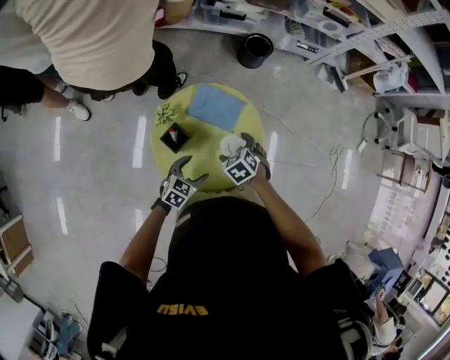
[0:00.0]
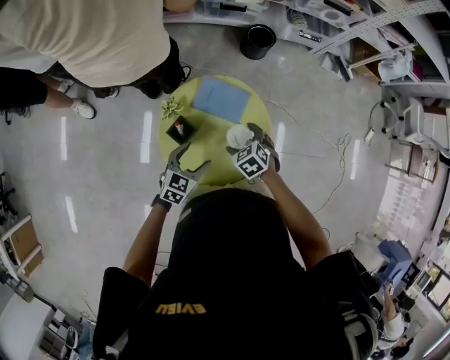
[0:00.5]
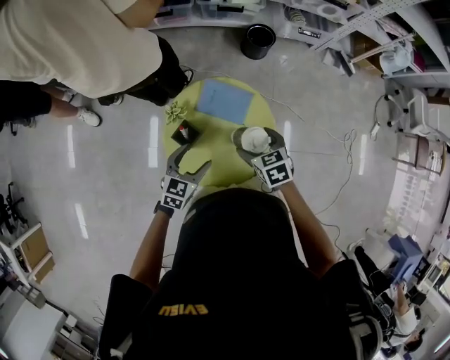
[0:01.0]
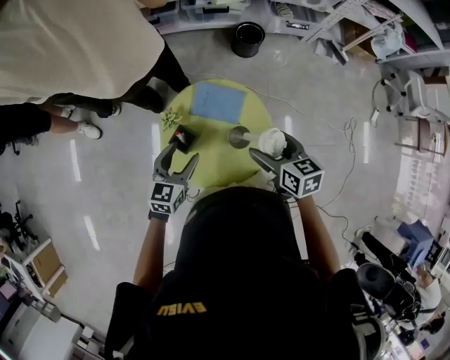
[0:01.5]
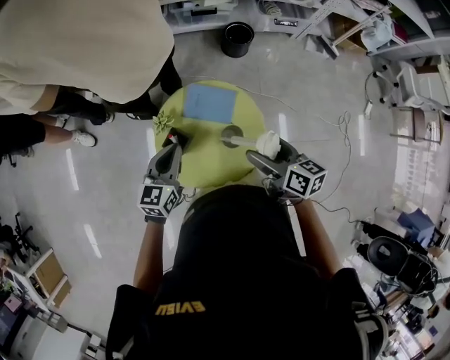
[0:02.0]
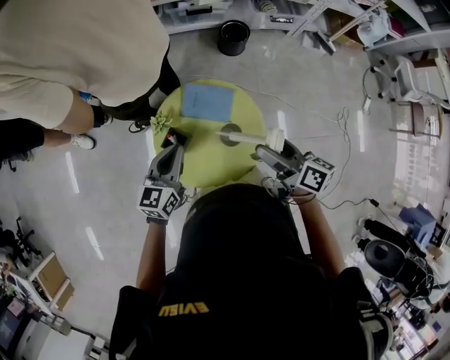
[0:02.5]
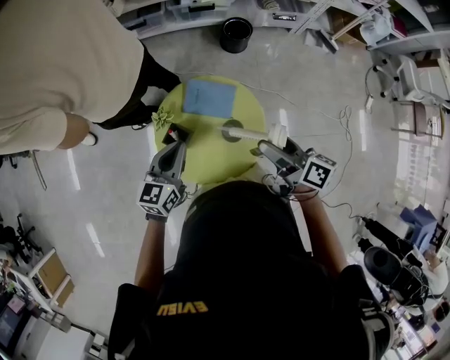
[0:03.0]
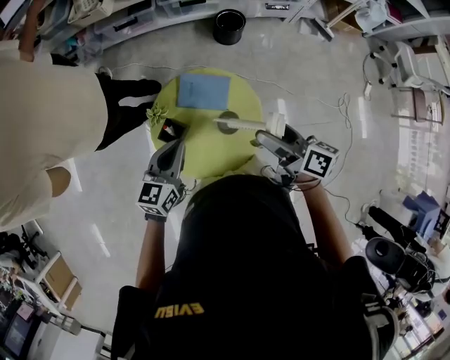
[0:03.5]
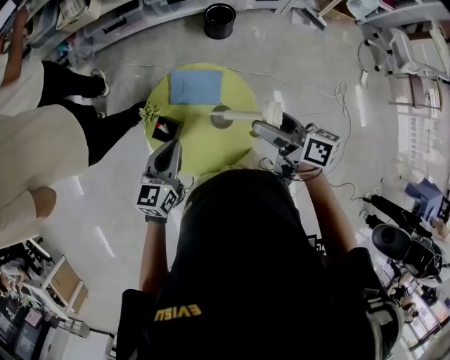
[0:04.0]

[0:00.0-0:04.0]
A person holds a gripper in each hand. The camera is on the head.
0:00.0 to 0:02.0: The right gripper heads upward, covering approximately 20 cm, and tips its fingers upward by approximately 40 degrees. The left gripper travels upward and forward by some 20 cm, swivels approximately 30 degrees, and closes its fingers.
0:02.0 to 0:04.0: There are only small adjustments of the grippers.

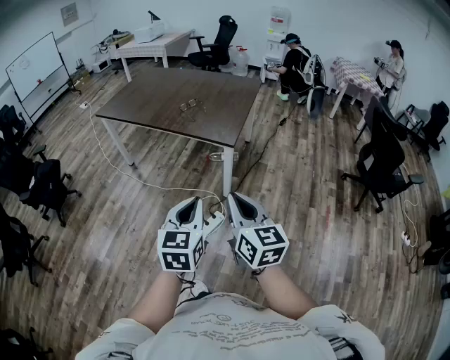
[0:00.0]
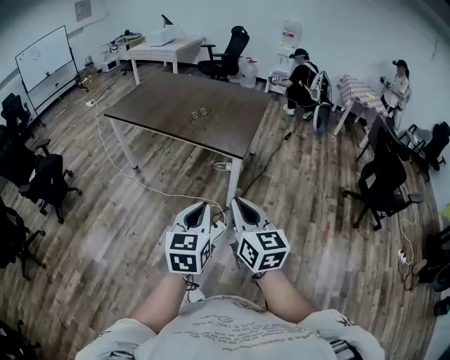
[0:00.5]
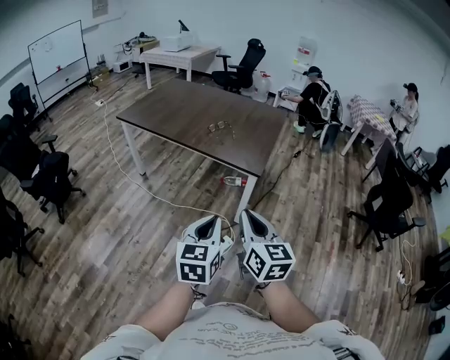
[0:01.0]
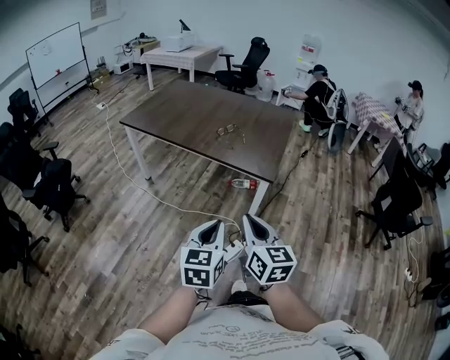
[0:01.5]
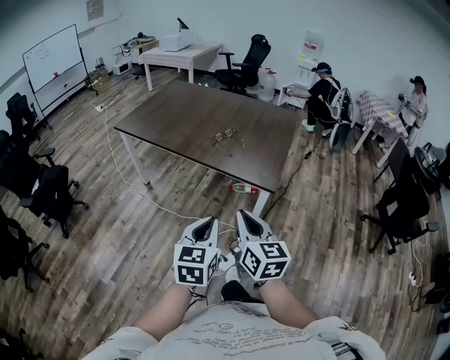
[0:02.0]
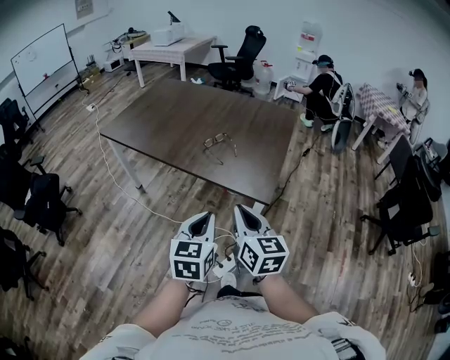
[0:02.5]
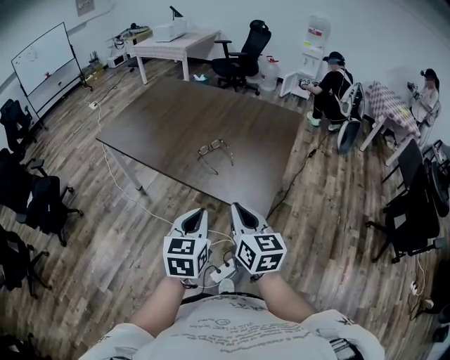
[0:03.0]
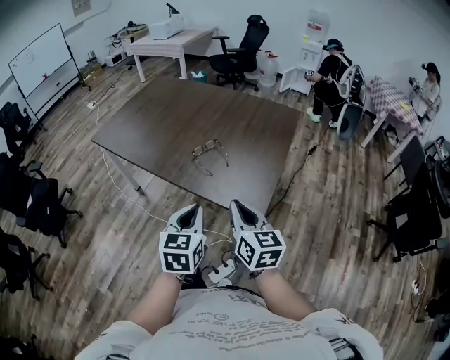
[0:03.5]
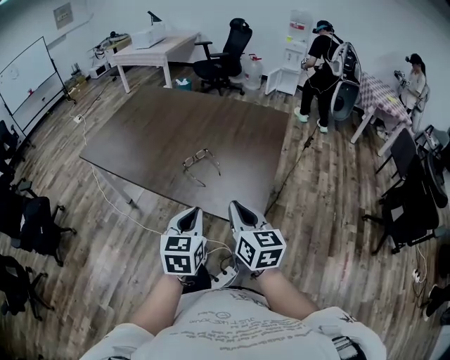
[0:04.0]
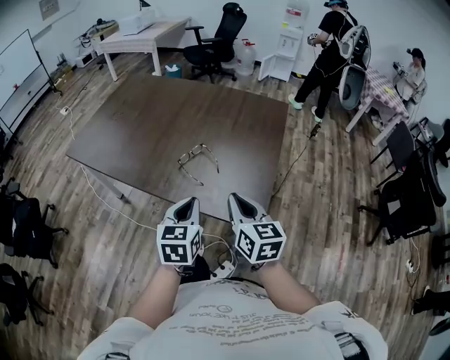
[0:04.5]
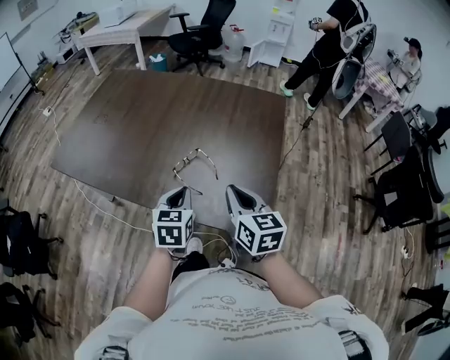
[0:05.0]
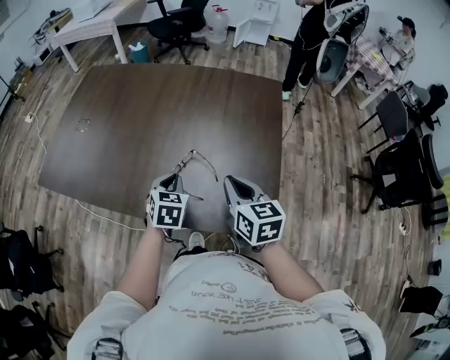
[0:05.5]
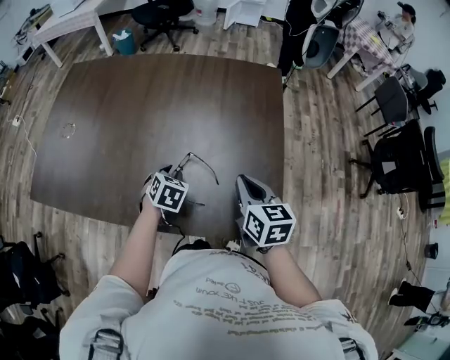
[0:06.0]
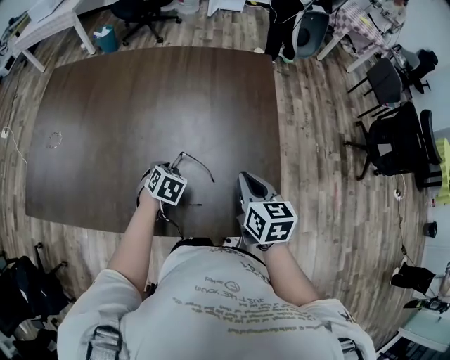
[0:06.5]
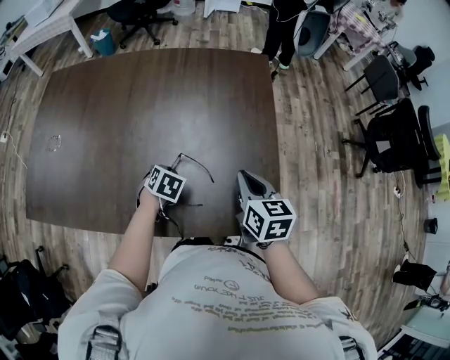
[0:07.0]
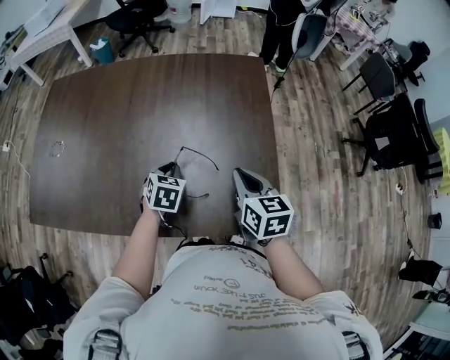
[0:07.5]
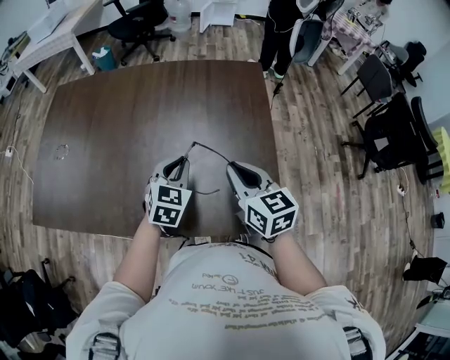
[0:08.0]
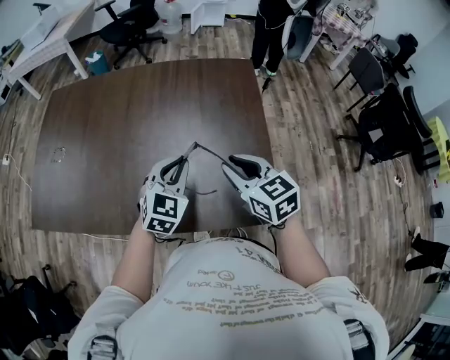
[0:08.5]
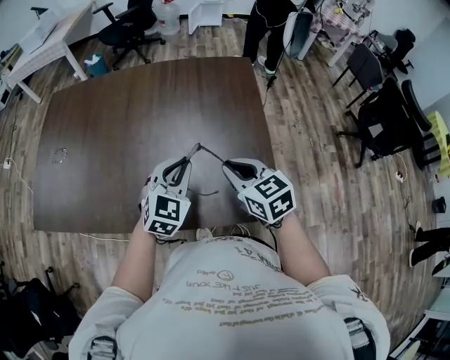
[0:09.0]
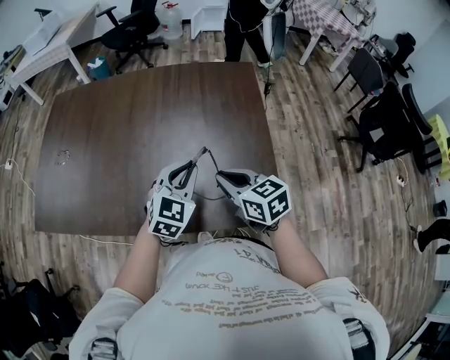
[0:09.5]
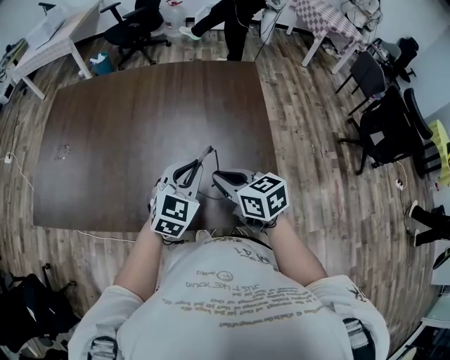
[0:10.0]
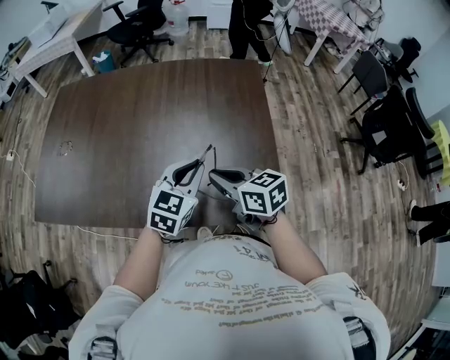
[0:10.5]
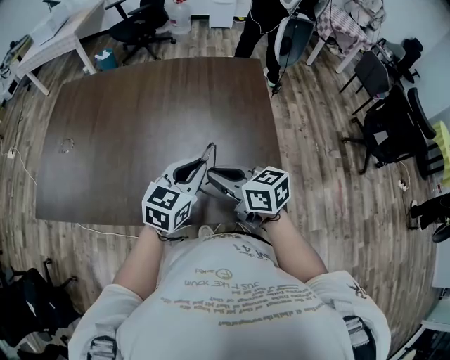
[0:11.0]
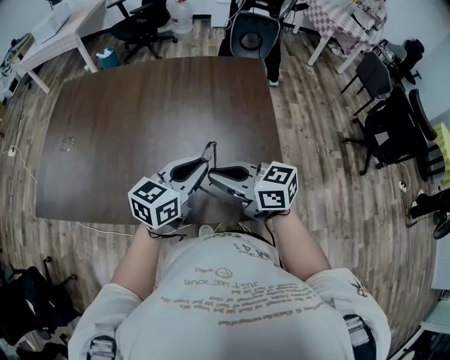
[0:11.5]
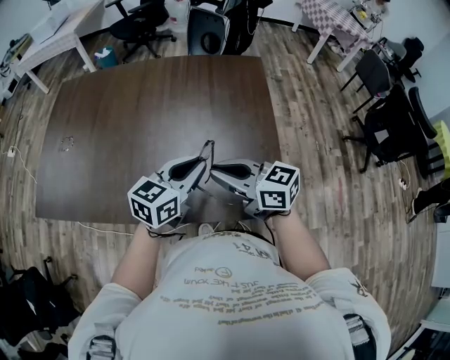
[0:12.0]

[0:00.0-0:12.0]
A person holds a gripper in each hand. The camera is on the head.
0:00.0 to 0:02.0: The two grippers go roughly 25 cm forward and to the left.
0:02.0 to 0:04.0: The left gripper moves forward, approximately 30 cm. The right gripper heads forward and to the right, covering roughly 30 cm.
0:04.0 to 0:06.0: The right gripper moves forward, about 25 cm, and rotates roughly 20 degrees; the left gripper goes about 40 cm forward and downward, tips its fingers downward by about 30 degrees, and opens its fingers.
0:06.0 to 0:08.0: The left gripper moves upward and to the right, approximately 10 cm, and swivels some 30 degrees.
0:08.0 to 0:10.0: The right gripper ends up about 5 cm from where it was, while the left gripper travels backward by about 5 cm.
0:10.0 to 0:12.0: The left gripper rotates approximately 30 degrees; the right gripper moves approximately 5 cm, and swivels some 20 degrees.

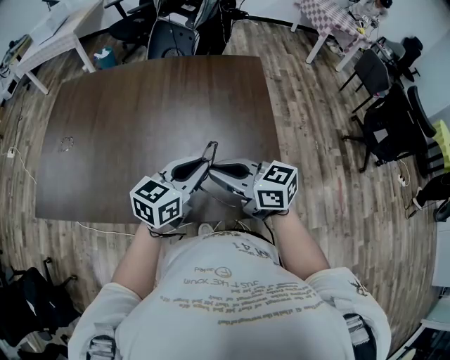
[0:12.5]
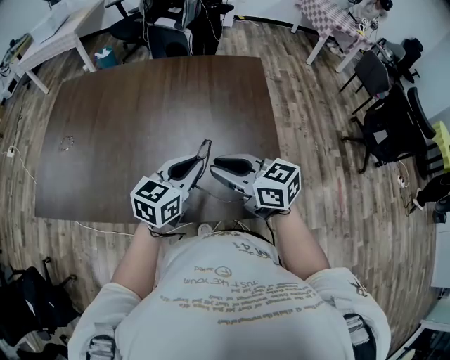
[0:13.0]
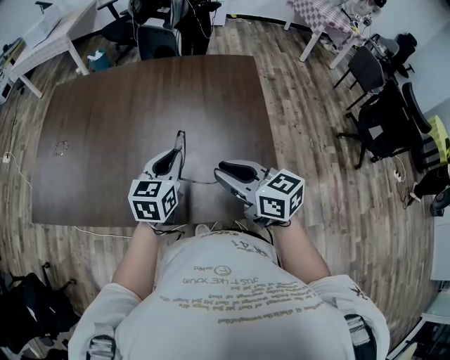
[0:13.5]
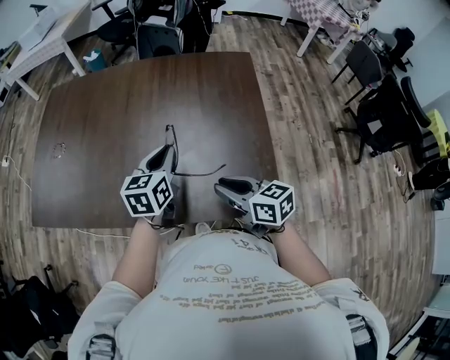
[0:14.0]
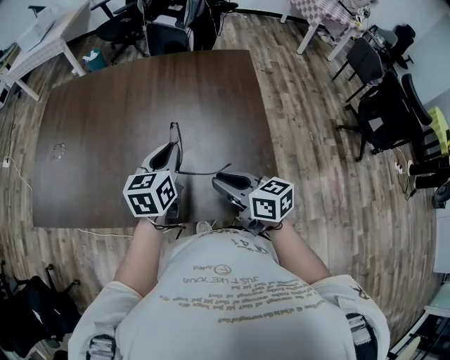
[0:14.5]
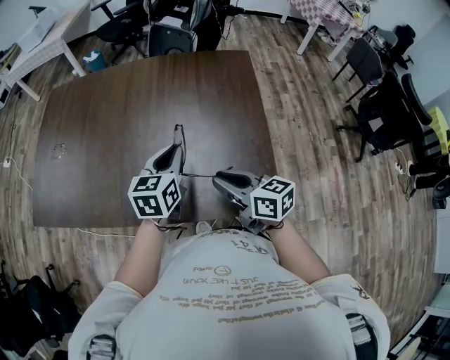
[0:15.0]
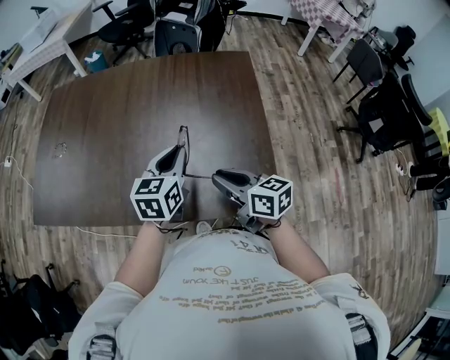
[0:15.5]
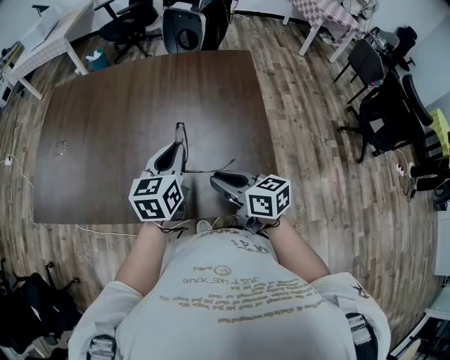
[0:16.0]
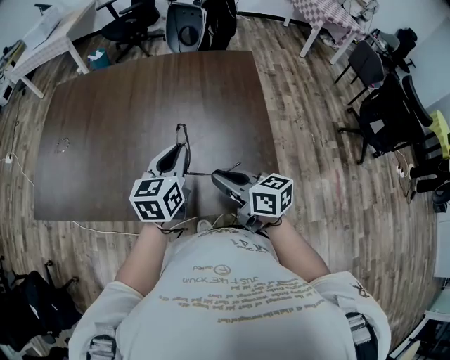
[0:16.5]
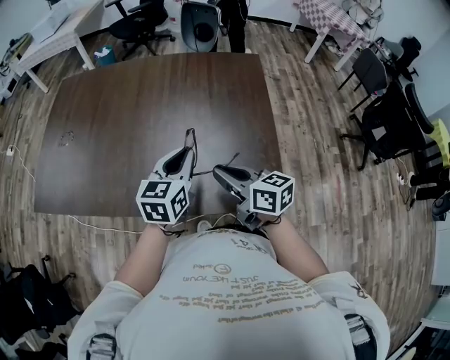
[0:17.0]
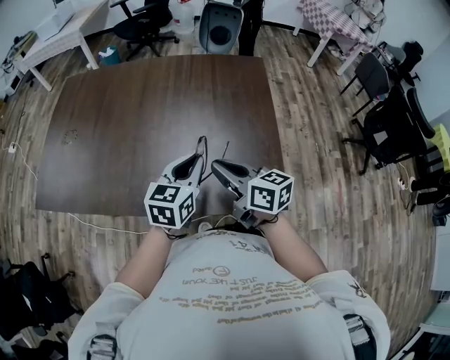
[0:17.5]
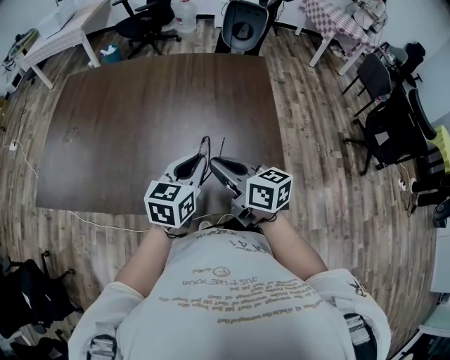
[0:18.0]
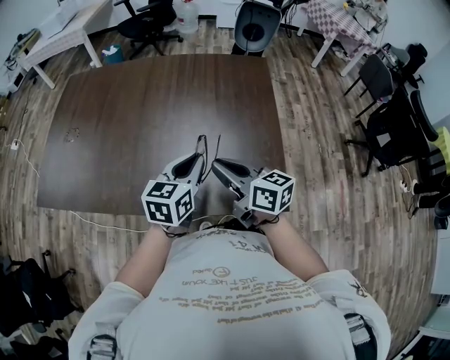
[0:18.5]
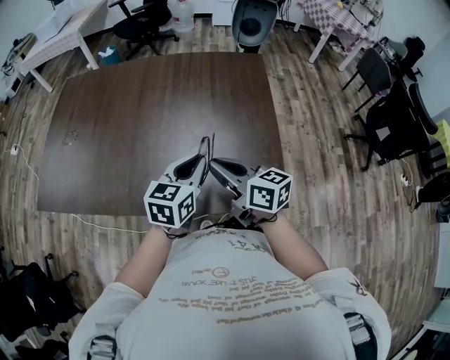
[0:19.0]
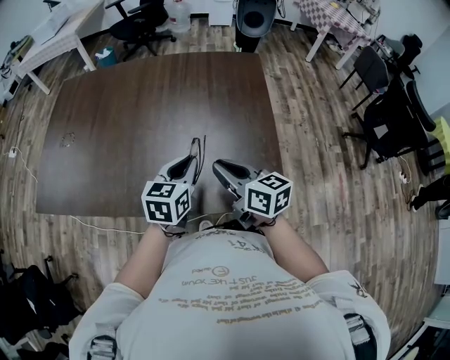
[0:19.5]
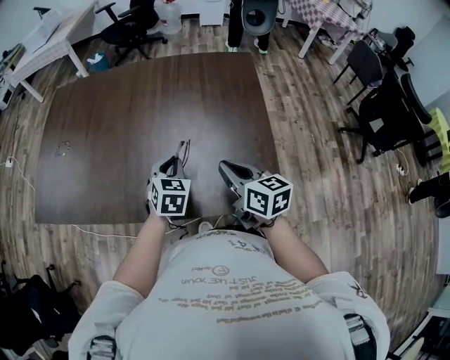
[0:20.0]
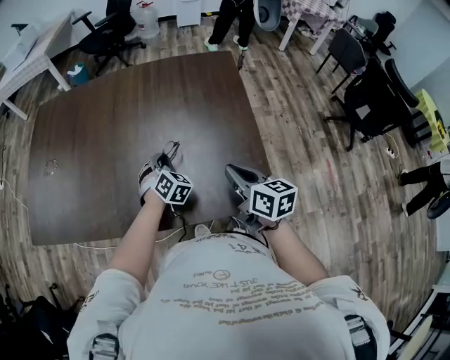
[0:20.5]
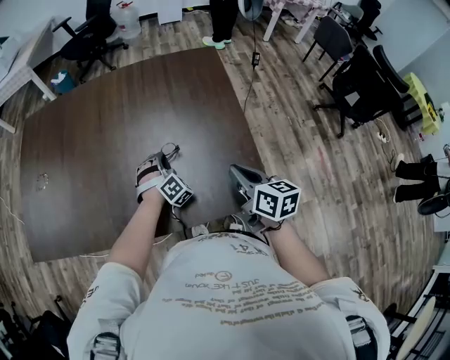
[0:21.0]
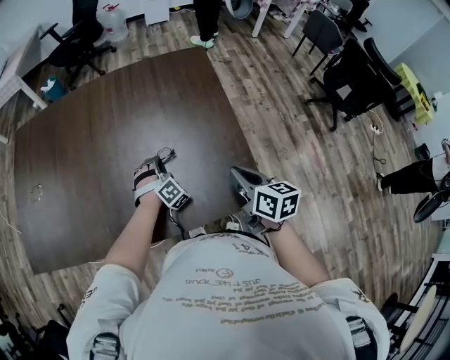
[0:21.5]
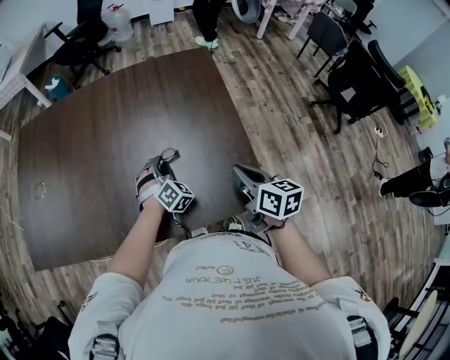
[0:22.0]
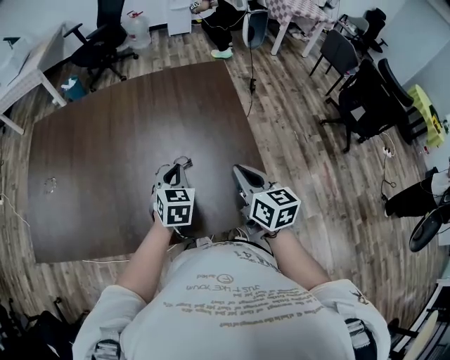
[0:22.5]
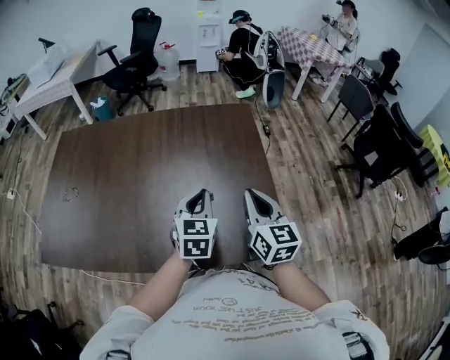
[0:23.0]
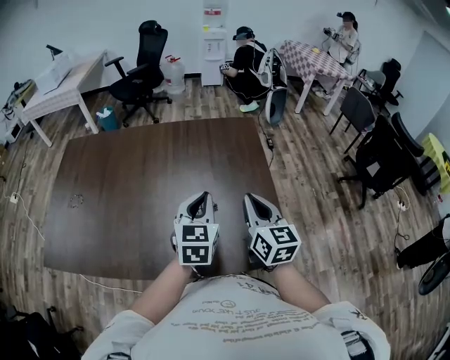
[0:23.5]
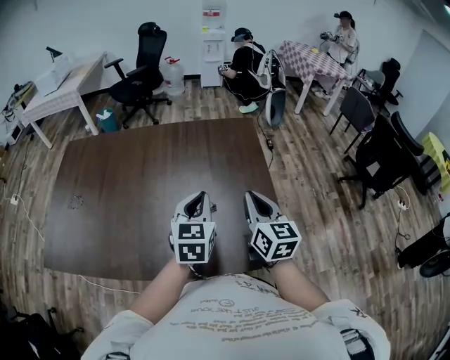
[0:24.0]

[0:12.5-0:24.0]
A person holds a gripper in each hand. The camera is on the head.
0:12.5 to 0:14.5: The left gripper travels forward by about 5 cm, and swivels some 30 degrees. The right gripper shifts some 5 cm downward.
0:14.5 to 0:16.5: The grippers stay close to where they were, moving slightly.
0:16.5 to 0:18.5: The grippers move only a little.
0:18.5 to 0:20.0: The left gripper travels downward by some 10 cm, and changes its angle by approximately 30 degrees. Meanwhile the right gripper shifts by roughly 5 cm.
0:20.0 to 0:22.0: The left gripper is displaced downward, forward and to the right by approximately 15 cm, and rolls clockwise, seen from behind, by about 40 degrees; the right gripper is displaced to the right by approximately 10 cm.
0:22.0 to 0:24.0: The left gripper shifts roughly 25 cm upward, twists roughly 50 degrees counterclockwise, seen from behind, and closes; the right gripper is displaced upward, to the left and forward by some 15 cm, and turns by roughly 30 degrees.
